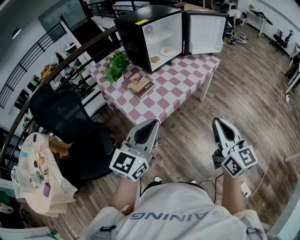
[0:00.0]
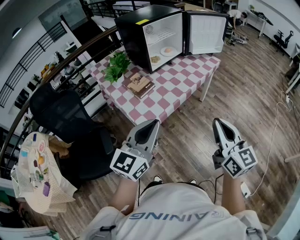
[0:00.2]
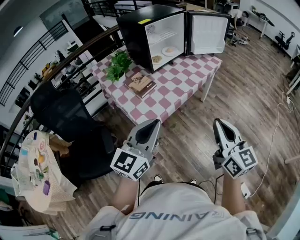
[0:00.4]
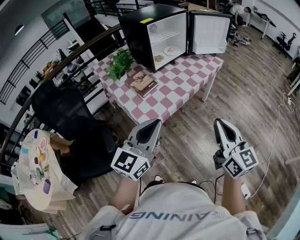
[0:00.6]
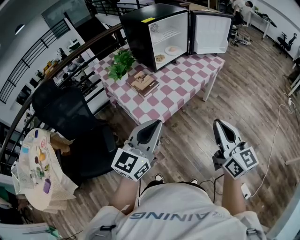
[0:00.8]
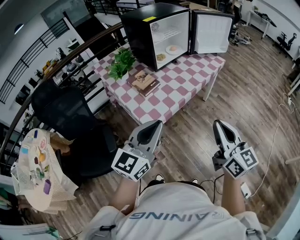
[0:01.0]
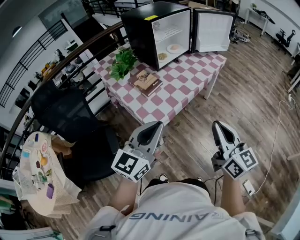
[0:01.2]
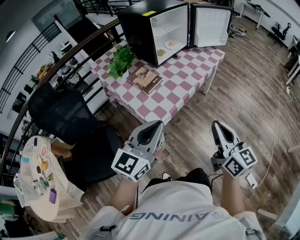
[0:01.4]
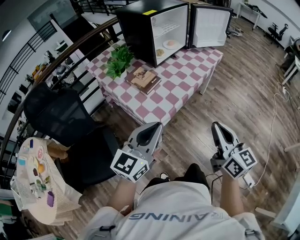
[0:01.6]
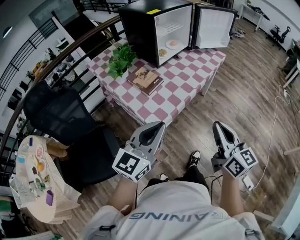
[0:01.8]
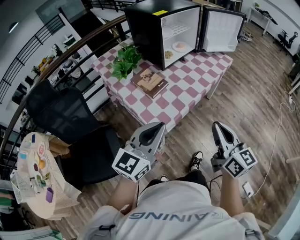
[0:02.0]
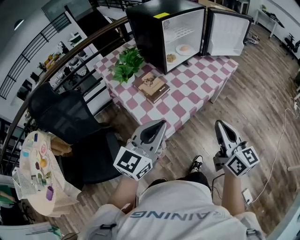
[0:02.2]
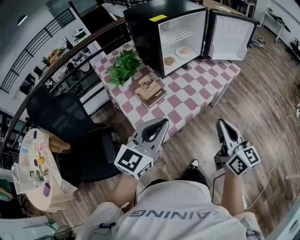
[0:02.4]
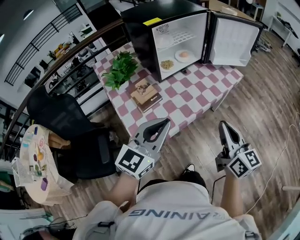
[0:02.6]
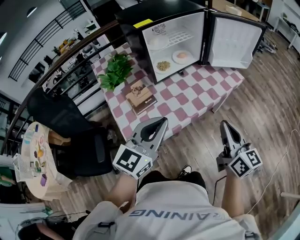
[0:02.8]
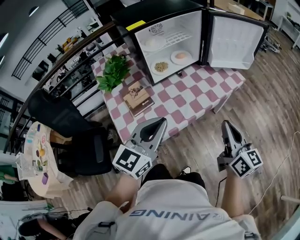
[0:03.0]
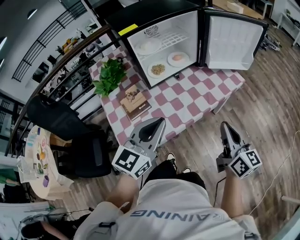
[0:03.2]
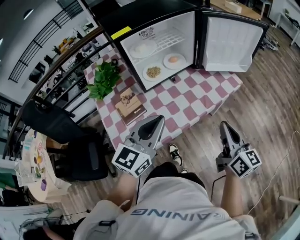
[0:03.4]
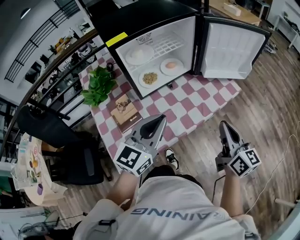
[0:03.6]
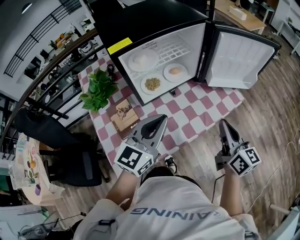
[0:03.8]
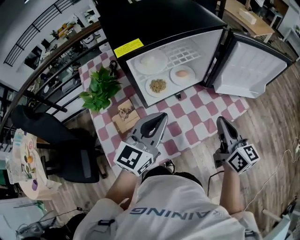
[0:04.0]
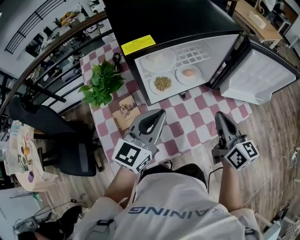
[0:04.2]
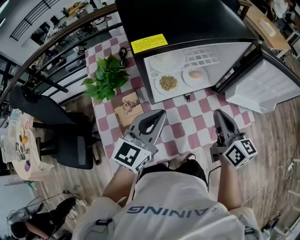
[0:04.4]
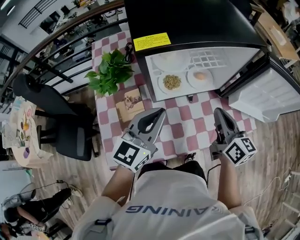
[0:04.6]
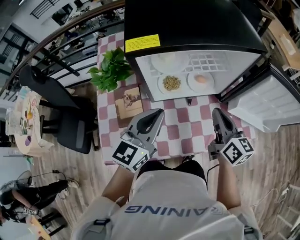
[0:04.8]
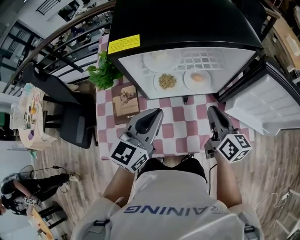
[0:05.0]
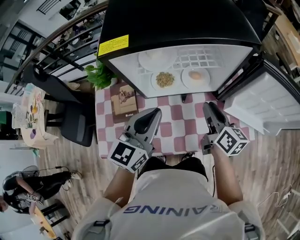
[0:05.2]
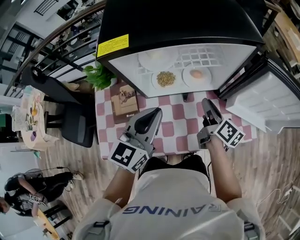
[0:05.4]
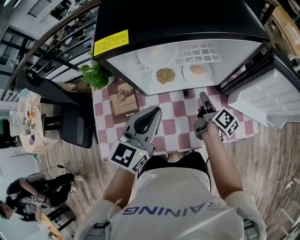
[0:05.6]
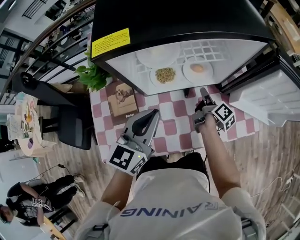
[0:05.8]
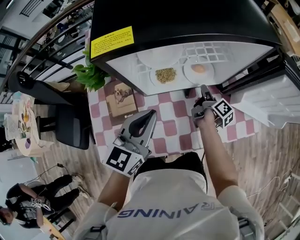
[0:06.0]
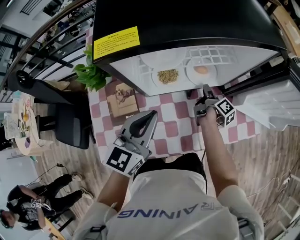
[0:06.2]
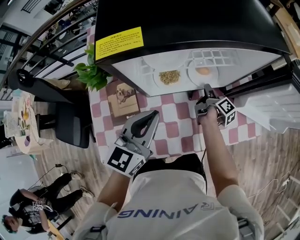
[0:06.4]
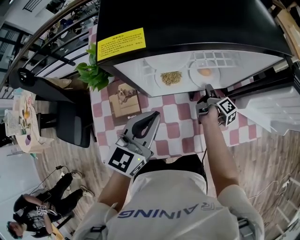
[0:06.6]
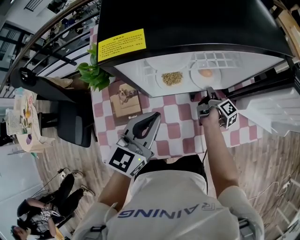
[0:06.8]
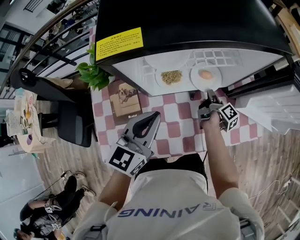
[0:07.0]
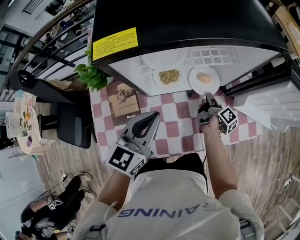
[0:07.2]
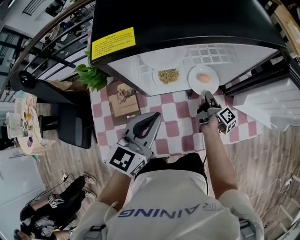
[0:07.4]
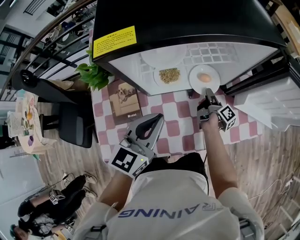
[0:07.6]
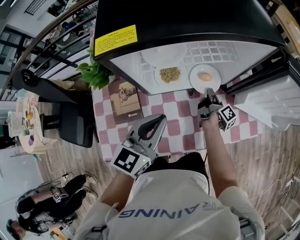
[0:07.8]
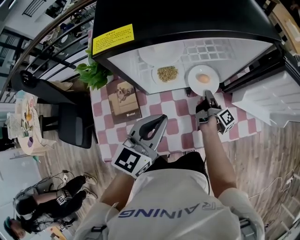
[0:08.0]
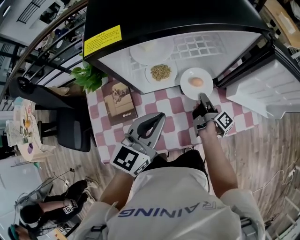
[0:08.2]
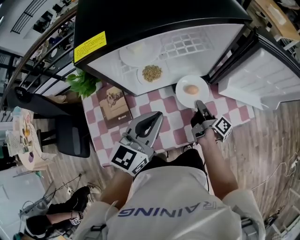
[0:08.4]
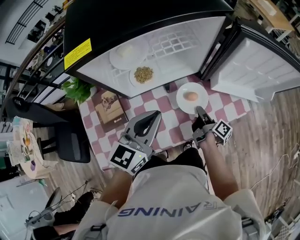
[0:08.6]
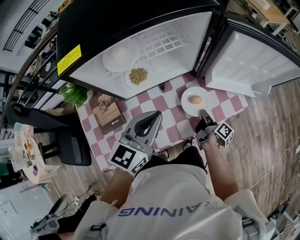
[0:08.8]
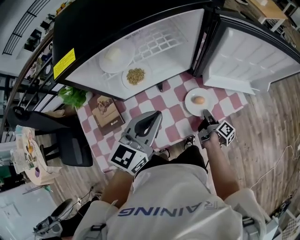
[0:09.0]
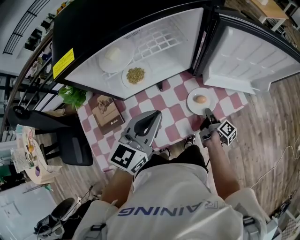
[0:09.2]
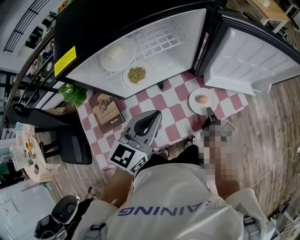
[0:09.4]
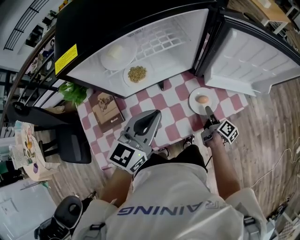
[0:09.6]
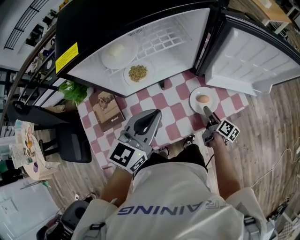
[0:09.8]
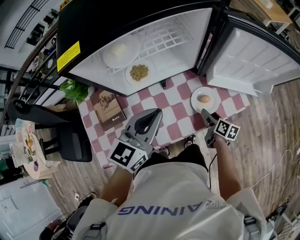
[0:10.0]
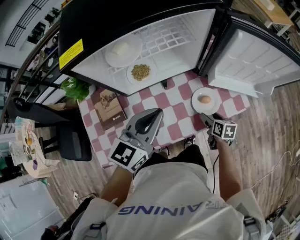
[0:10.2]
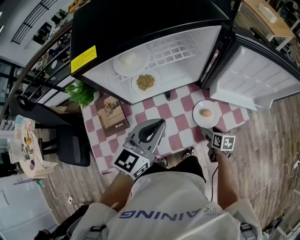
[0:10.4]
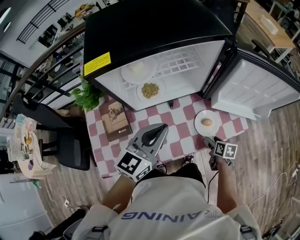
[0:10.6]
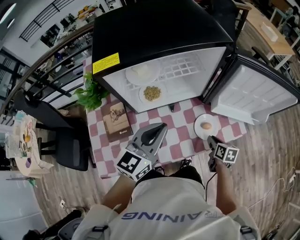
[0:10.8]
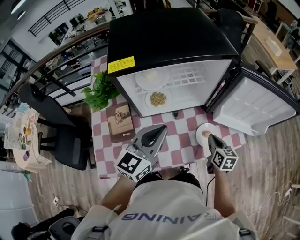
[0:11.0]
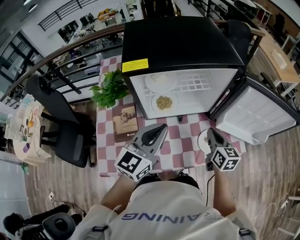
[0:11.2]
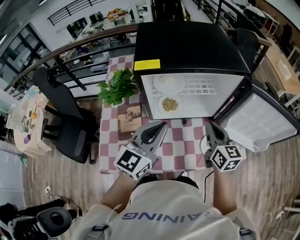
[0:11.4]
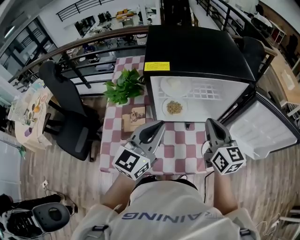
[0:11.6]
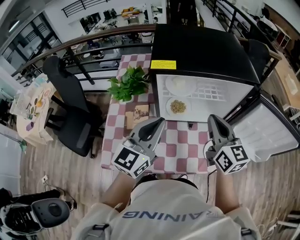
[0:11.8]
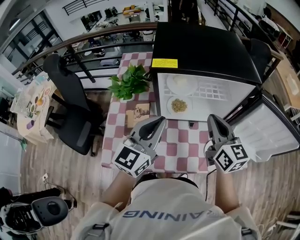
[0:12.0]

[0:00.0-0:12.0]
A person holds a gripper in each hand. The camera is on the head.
0:00.0 to 0:01.6: Both grippers travel together to the left, approximately 10 cm.
0:01.6 to 0:03.0: Both grippers travel together forward and to the right, approximately 35 cm.
0:03.0 to 0:04.4: The grippers both shift forward by some 25 cm.
0:04.4 to 0:06.0: The right gripper shifts roughly 30 cm downward and forward, rotates around the line of its fingers by some 60 degrees, clockwise from behind, and opens up. Meanwhile the left gripper changes place by about 5 cm.
0:06.0 to 0:07.6: The grippers move only a little.
0:07.6 to 0:09.0: The right gripper is displaced to the right and backward by about 20 cm. The left gripper goes about 10 cm to the right.
0:09.0 to 0:10.4: The right gripper twists approximately 60 degrees counterclockwise, seen from behind, and opens up.
0:10.4 to 0:12.0: The left gripper moves to the left and upward, approximately 15 cm, and rotates roughly 30 degrees; the right gripper heads upward and to the left, covering about 40 cm, angles its fingers upward, by some 50 degrees, and closes.

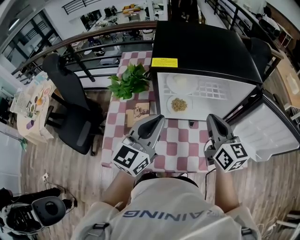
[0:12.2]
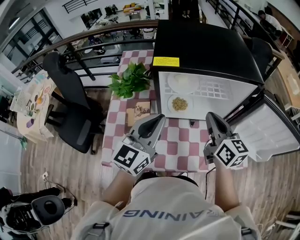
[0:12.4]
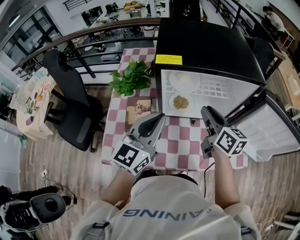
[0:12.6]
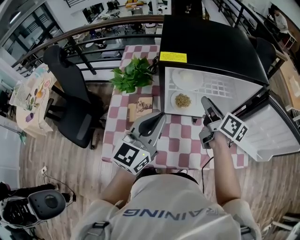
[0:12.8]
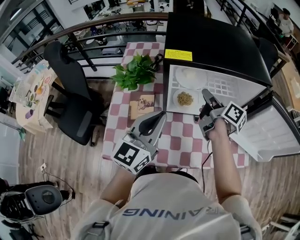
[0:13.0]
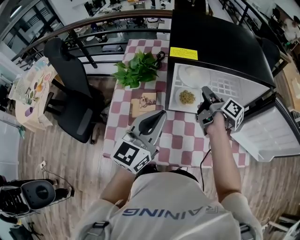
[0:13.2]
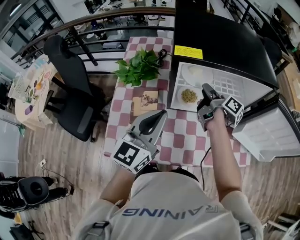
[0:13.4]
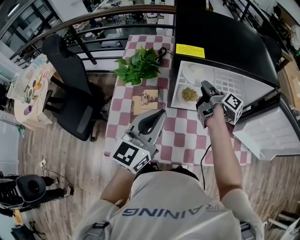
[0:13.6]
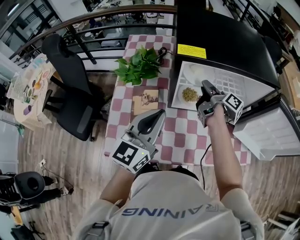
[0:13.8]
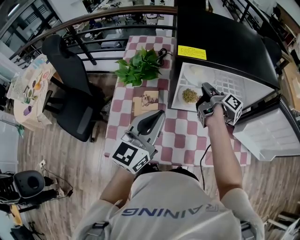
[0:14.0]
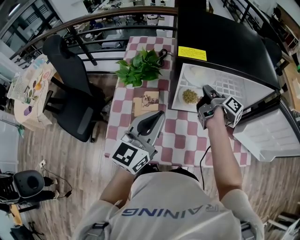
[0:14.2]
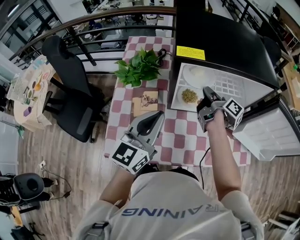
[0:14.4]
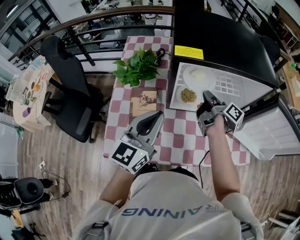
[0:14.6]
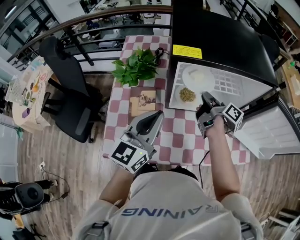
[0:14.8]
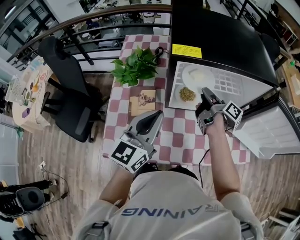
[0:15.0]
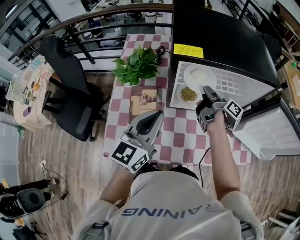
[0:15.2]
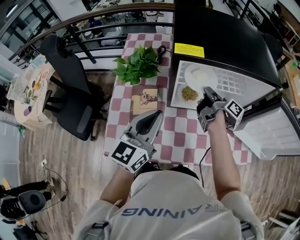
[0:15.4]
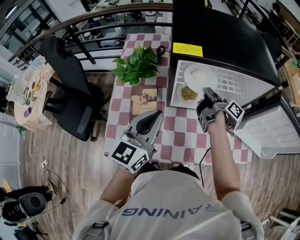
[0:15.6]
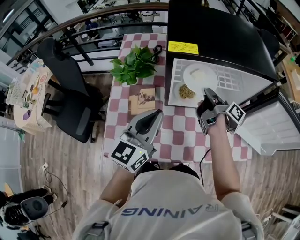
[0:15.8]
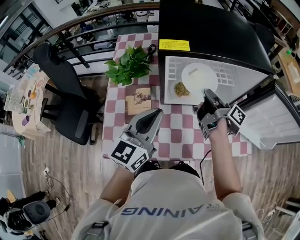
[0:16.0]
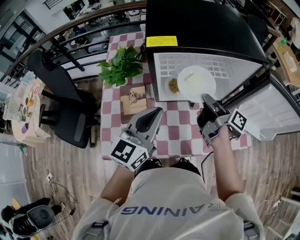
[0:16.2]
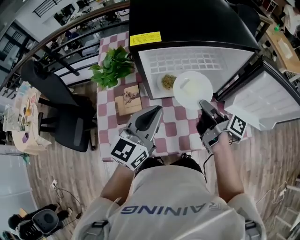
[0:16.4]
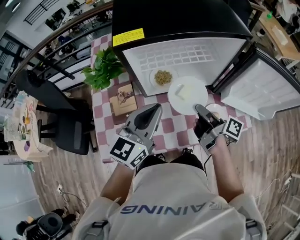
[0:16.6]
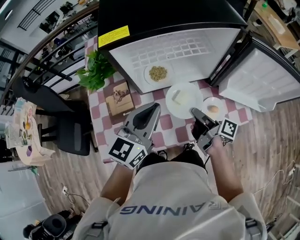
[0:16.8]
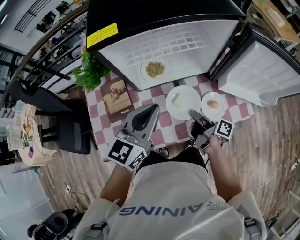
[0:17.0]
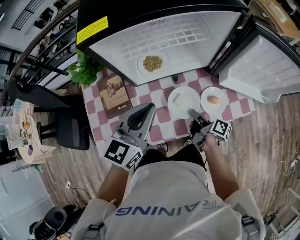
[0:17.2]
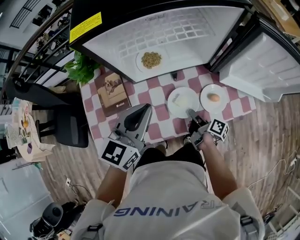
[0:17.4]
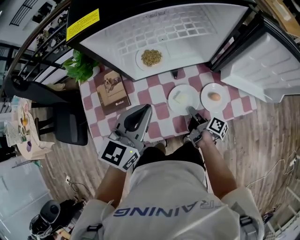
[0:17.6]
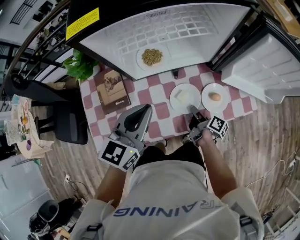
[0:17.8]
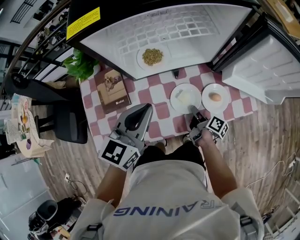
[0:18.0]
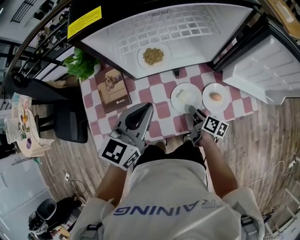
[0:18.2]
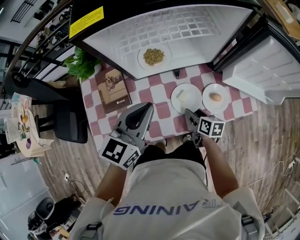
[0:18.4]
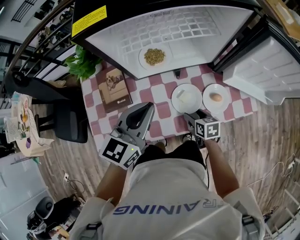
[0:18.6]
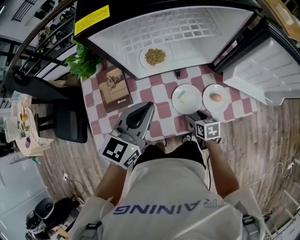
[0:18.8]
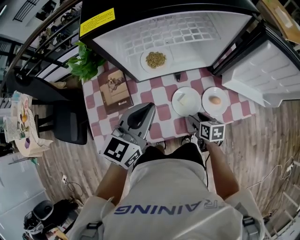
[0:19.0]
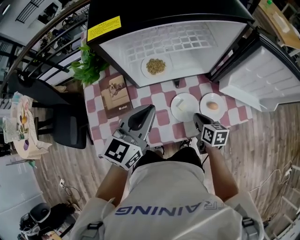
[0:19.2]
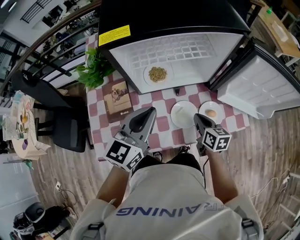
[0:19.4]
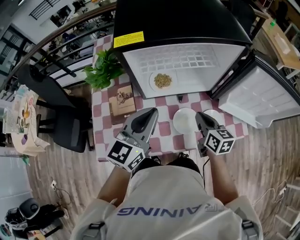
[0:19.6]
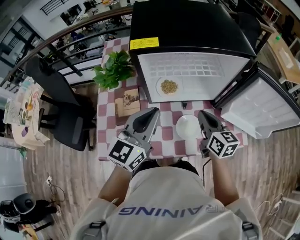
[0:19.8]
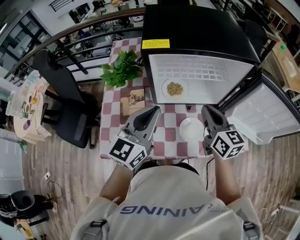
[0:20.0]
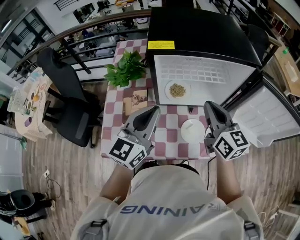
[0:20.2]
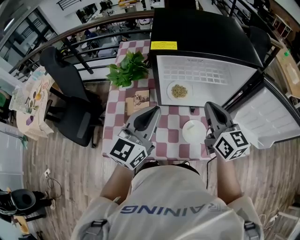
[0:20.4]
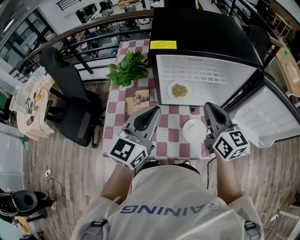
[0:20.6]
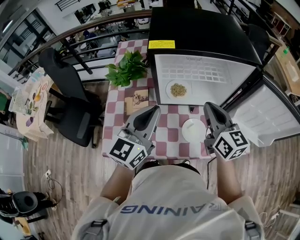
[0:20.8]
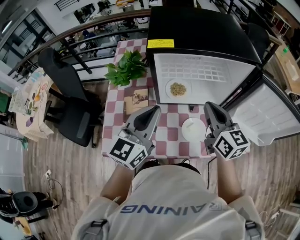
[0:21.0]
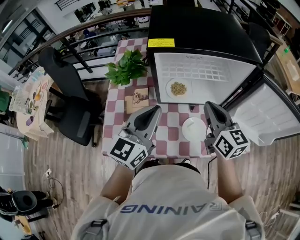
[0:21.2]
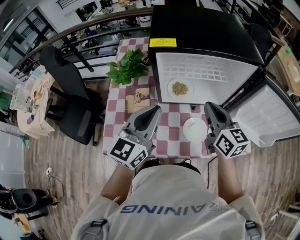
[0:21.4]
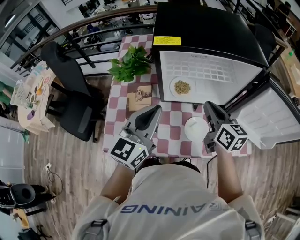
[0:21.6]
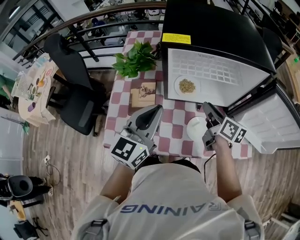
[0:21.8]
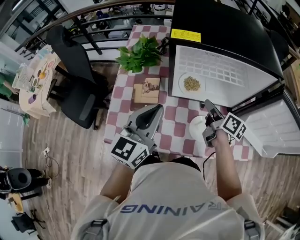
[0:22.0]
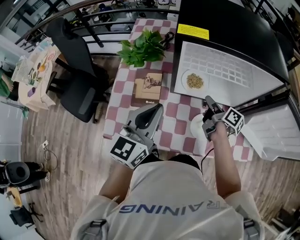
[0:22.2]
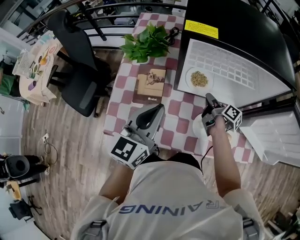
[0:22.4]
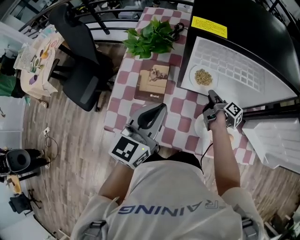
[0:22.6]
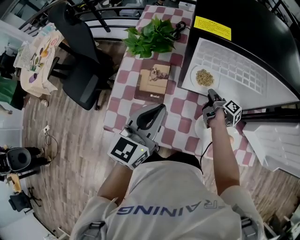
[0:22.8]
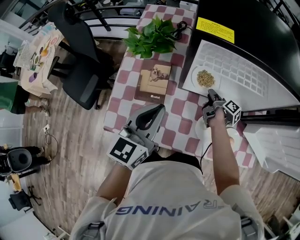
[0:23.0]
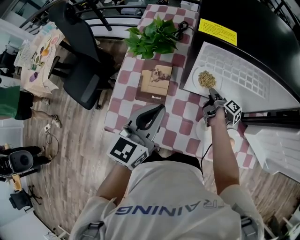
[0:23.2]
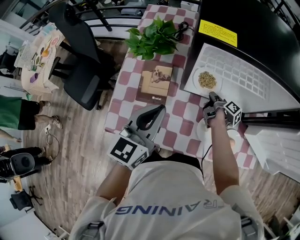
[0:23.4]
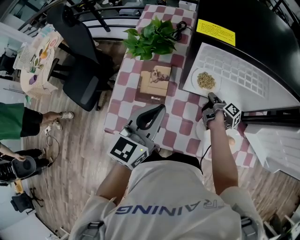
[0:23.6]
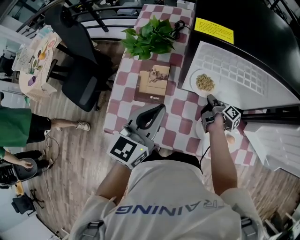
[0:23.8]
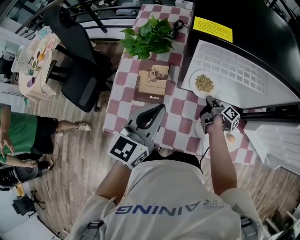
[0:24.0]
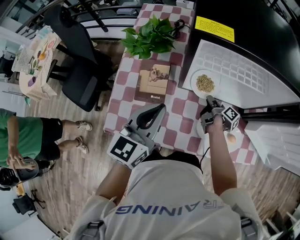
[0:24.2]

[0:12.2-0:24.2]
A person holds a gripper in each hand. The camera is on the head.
0:12.2 to 0:13.8: The right gripper moves forward, downward and to the left, approximately 20 cm, rotates around the line of its fingers by some 70 degrees, clockwise from behind, and opens; the left gripper shifts some 5 cm to the left.
0:13.8 to 0:15.2: The grippers stay close to where they were, moving slightly.
0:15.2 to 0:16.6: The left gripper moves to the right, roughly 10 cm; the right gripper shifts approximately 20 cm backward and to the right.
0:16.6 to 0:18.2: The right gripper travels downward by about 20 cm, and turns by about 30 degrees; the left gripper shifts some 5 cm downward.
0:18.2 to 0:19.8: The right gripper is displaced upward by some 25 cm, twists approximately 40 degrees counterclockwise, seen from behind, and opens, then closes again, while the left gripper heads upward, covering roughly 10 cm.
0:19.8 to 0:21.2: The right gripper moves upward, roughly 10 cm.
0:21.2 to 0:22.6: The left gripper goes about 10 cm downward and to the left; the right gripper is displaced downward and forward by about 30 cm, and rolls clockwise, seen from behind, by some 70 degrees.
0:22.6 to 0:24.2: The grippers move only a little.
